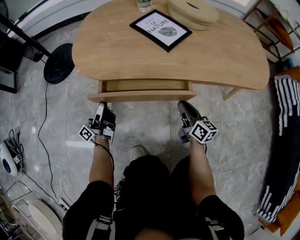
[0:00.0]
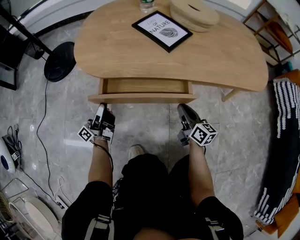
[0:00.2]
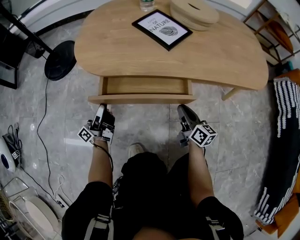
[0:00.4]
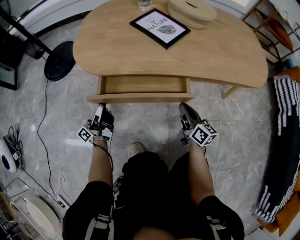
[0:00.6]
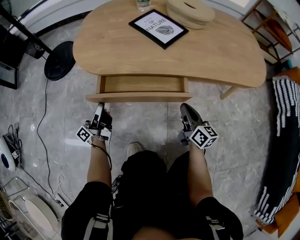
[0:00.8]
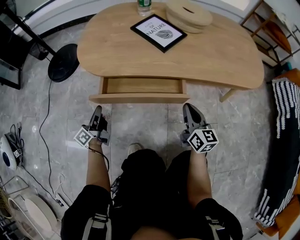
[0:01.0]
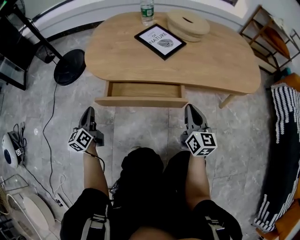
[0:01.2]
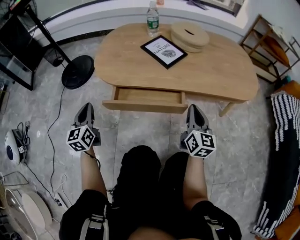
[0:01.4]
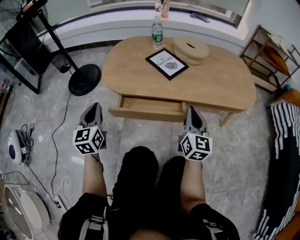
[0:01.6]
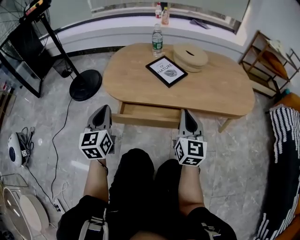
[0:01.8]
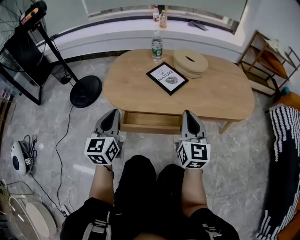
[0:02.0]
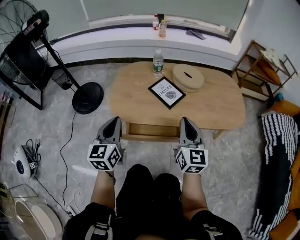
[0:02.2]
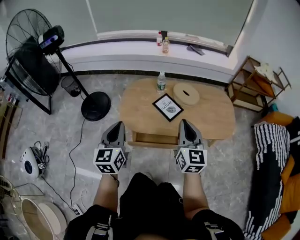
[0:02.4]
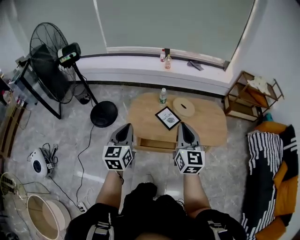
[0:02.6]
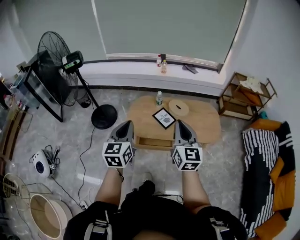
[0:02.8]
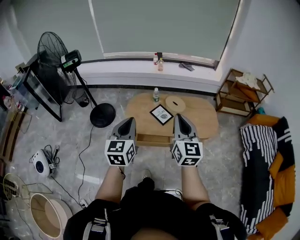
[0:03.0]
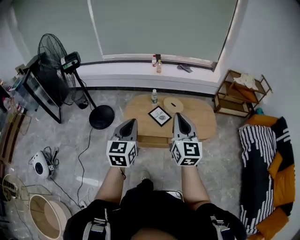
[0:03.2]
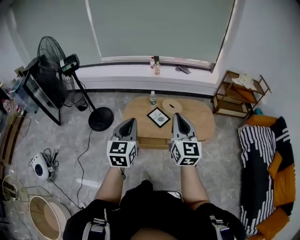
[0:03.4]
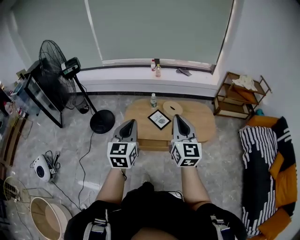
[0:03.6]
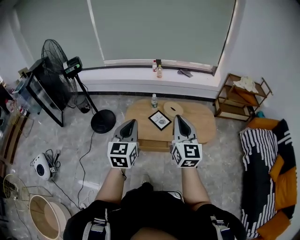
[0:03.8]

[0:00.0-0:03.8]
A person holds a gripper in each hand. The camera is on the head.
0.0 to 1.2 s: The right gripper travels upward by roughly 15 cm, and changes its angle by about 30 degrees. The left gripper heads upward, to the left and backward, covering approximately 10 cm, angles its fingers downward, by some 30 degrees, and closes its fingers.
1.2 to 2.6 s: The grippers both shift upward by approximately 70 cm. The left gripper turns by approximately 20 degrees.
2.6 to 3.8 s: The left gripper shifts approximately 20 cm upward, backward and to the right, while the right gripper travels upward and backward by approximately 20 cm.

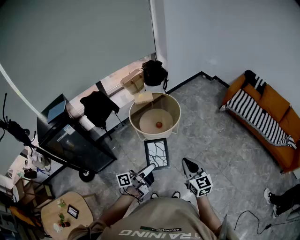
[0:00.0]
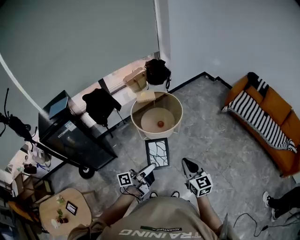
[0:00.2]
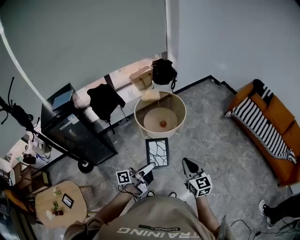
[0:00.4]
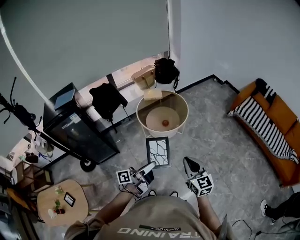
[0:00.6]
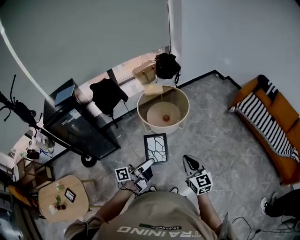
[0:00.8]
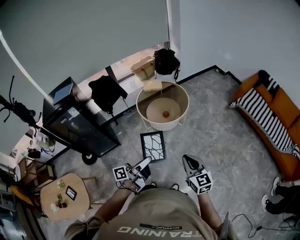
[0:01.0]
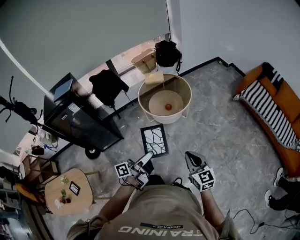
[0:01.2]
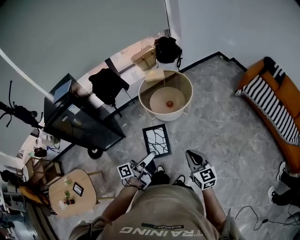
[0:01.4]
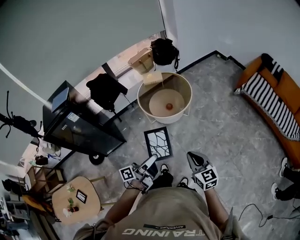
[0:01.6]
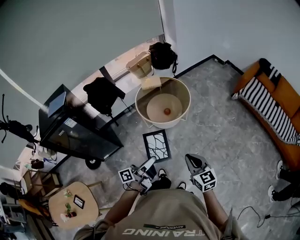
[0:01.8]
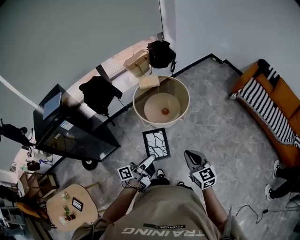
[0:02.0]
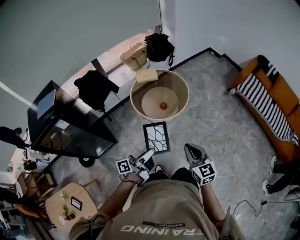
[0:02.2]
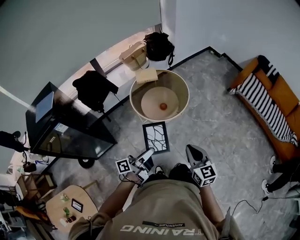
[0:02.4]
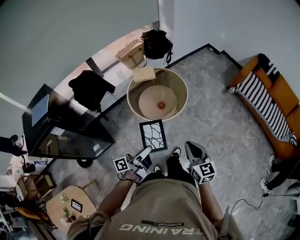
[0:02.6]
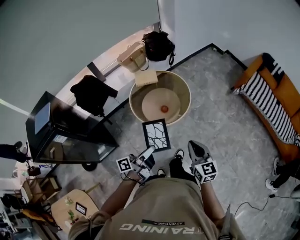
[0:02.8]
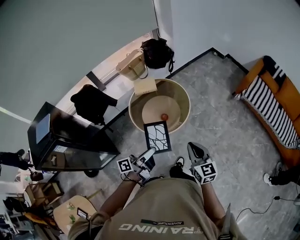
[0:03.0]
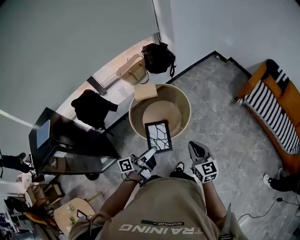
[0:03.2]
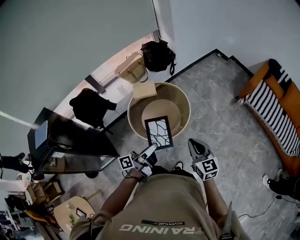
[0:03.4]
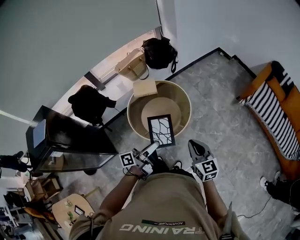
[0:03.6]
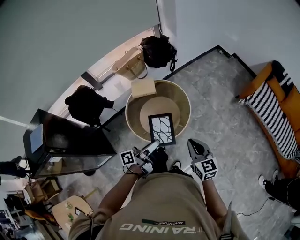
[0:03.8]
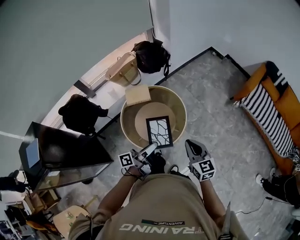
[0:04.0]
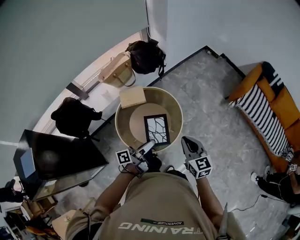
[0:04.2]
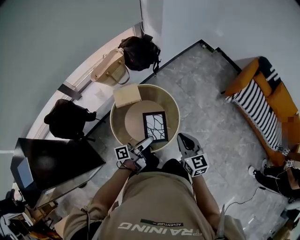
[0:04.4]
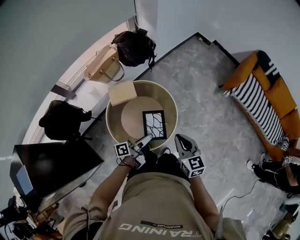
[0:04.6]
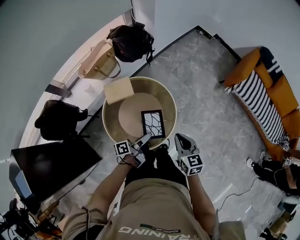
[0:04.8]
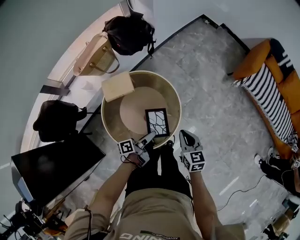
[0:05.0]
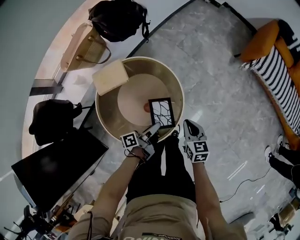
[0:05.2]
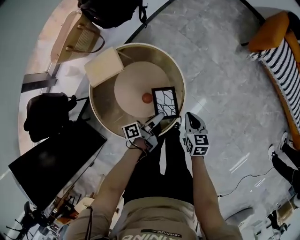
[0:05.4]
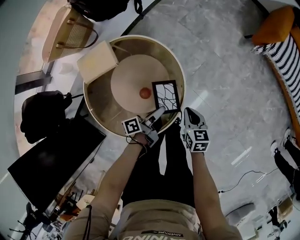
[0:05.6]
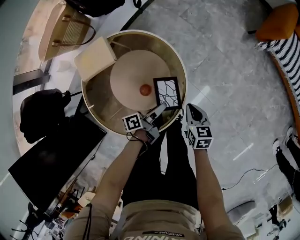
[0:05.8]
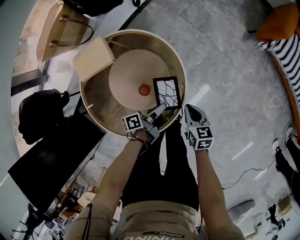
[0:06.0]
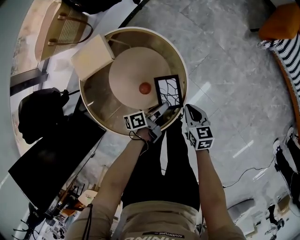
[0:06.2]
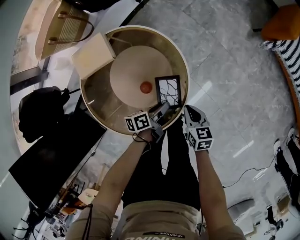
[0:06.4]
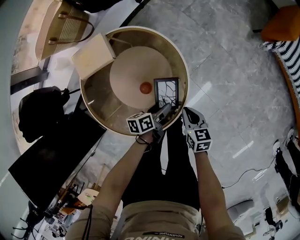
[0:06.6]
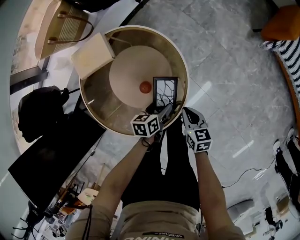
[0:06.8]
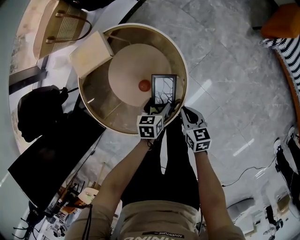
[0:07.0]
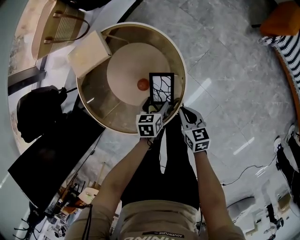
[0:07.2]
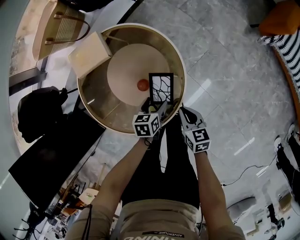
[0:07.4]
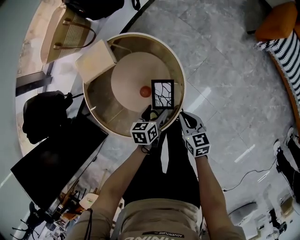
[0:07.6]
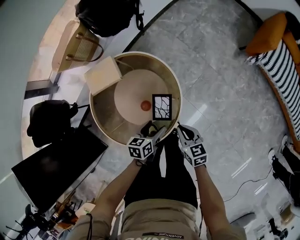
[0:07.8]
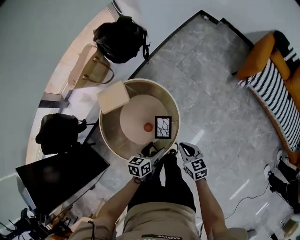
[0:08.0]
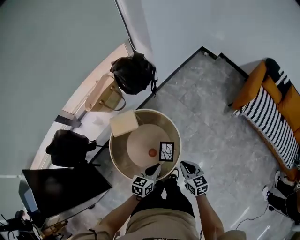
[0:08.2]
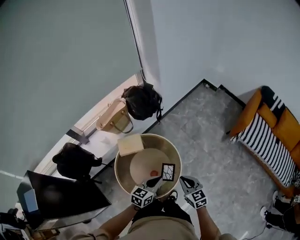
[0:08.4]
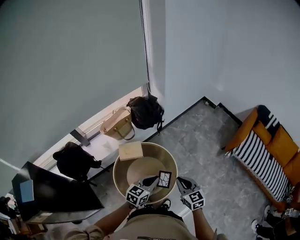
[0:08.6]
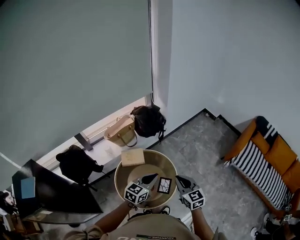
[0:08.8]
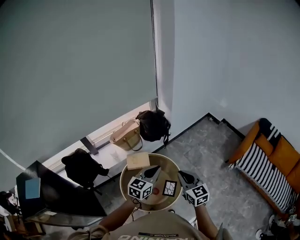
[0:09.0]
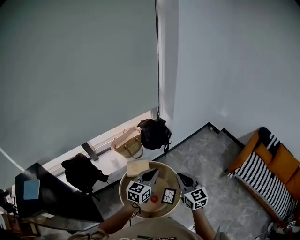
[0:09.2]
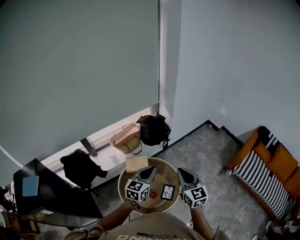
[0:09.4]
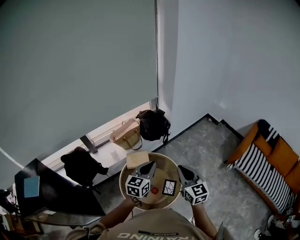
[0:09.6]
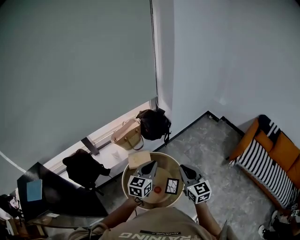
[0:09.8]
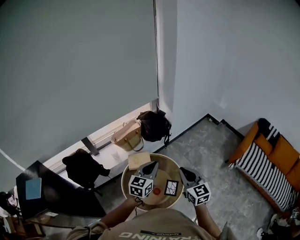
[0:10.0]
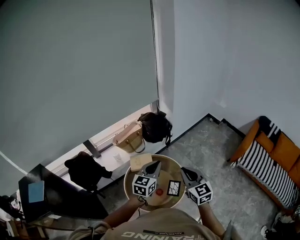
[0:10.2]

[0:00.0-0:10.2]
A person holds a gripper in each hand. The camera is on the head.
0.0 to 1.4 s: The right gripper is displaced downward by some 5 cm.
1.4 to 3.0 s: Both grippers move forward, roughly 25 cm.
3.0 to 4.4 s: Both grippers travel together forward, approximately 25 cm.
4.4 to 5.8 s: The two grippers go roughly 40 cm downward. The left gripper changes its angle by roughly 20 degrees. The right gripper swivels about 30 degrees.
5.8 to 7.2 s: The left gripper shifts about 5 cm downward, angles its fingers downward, by about 40 degrees, and opens its fingers.
7.2 to 8.8 s: The grippers both shift upward by roughly 50 cm. The left gripper tilts its fingers roughly 40 degrees upward, and closes, while the right gripper turns by approximately 40 degrees.
8.8 to 10.2 s: Both grippers travel together upward, approximately 5 cm.

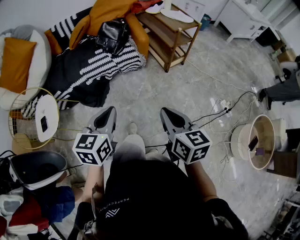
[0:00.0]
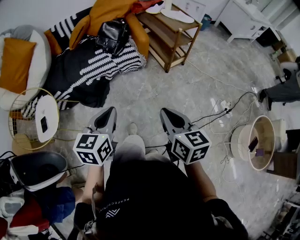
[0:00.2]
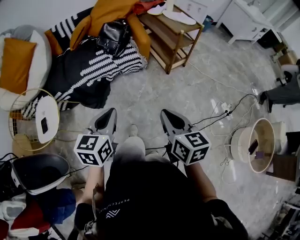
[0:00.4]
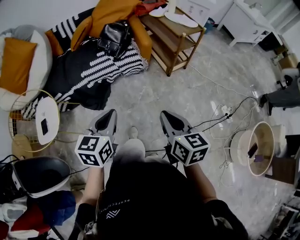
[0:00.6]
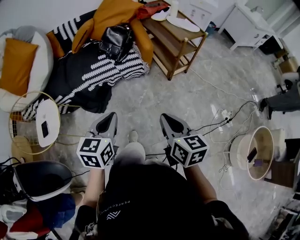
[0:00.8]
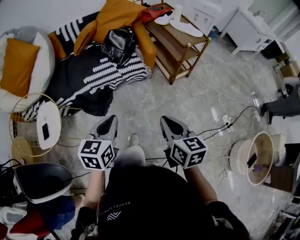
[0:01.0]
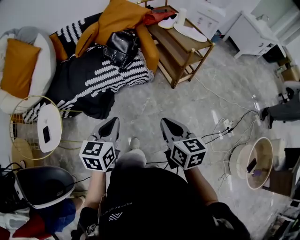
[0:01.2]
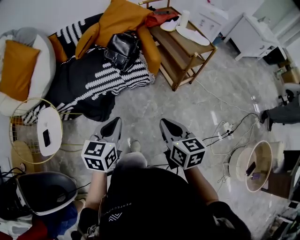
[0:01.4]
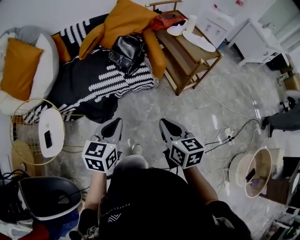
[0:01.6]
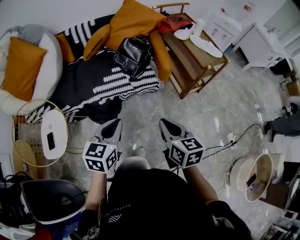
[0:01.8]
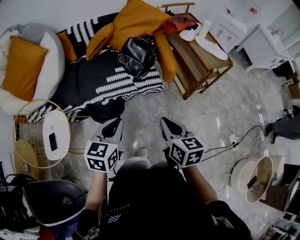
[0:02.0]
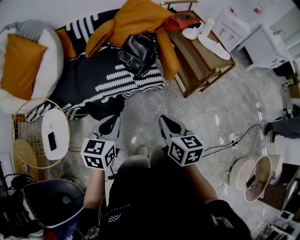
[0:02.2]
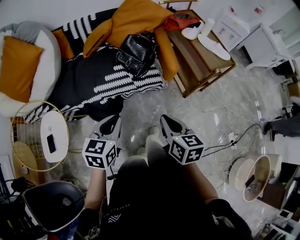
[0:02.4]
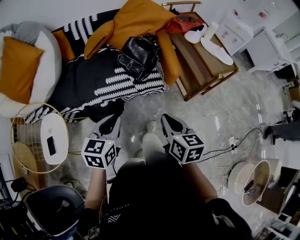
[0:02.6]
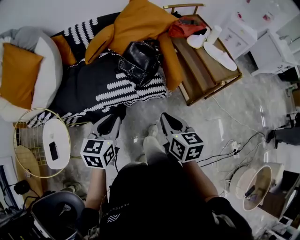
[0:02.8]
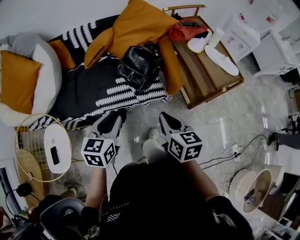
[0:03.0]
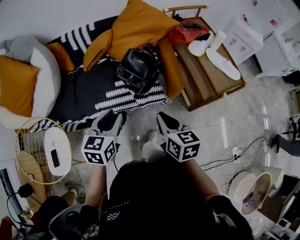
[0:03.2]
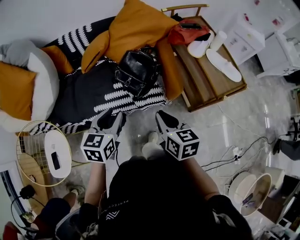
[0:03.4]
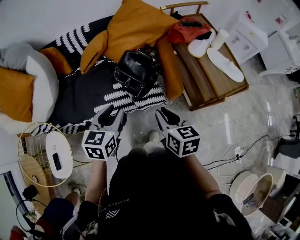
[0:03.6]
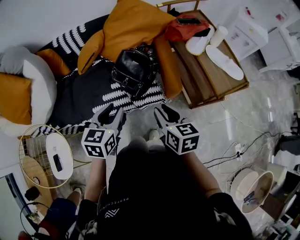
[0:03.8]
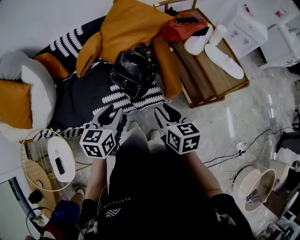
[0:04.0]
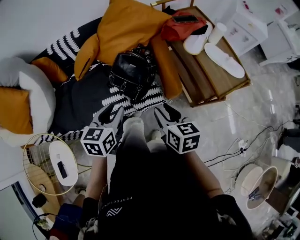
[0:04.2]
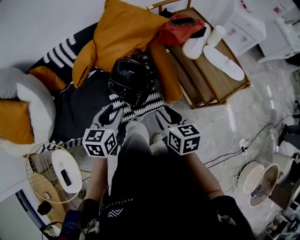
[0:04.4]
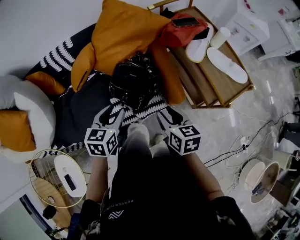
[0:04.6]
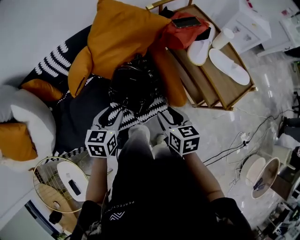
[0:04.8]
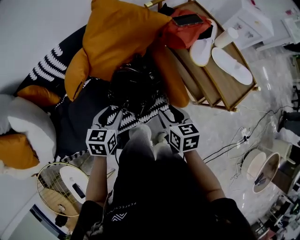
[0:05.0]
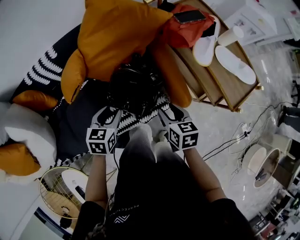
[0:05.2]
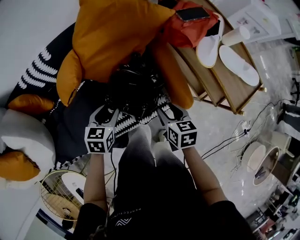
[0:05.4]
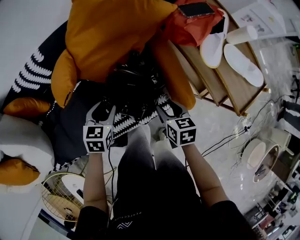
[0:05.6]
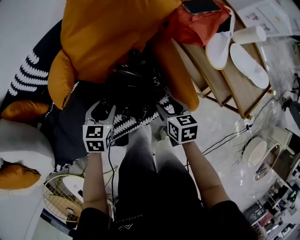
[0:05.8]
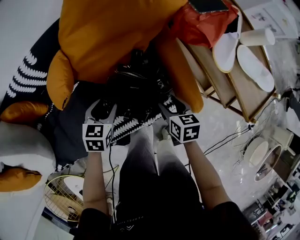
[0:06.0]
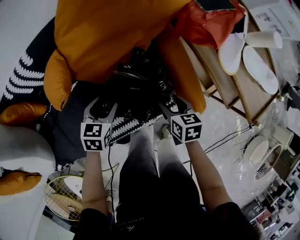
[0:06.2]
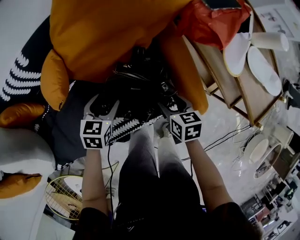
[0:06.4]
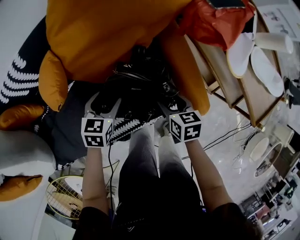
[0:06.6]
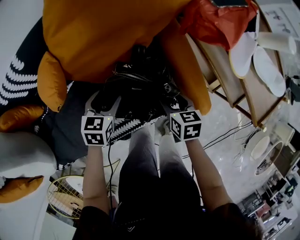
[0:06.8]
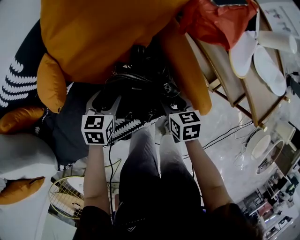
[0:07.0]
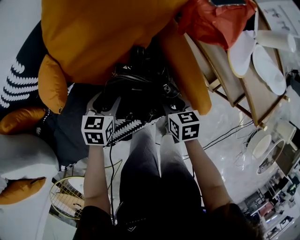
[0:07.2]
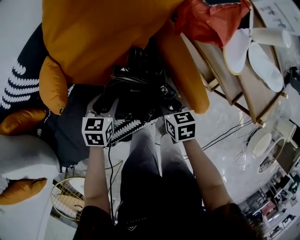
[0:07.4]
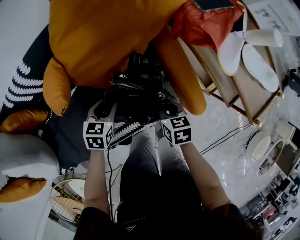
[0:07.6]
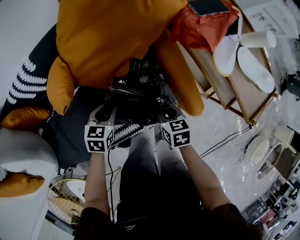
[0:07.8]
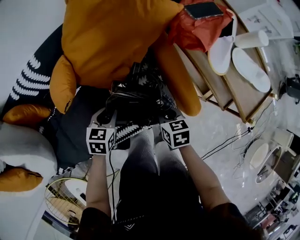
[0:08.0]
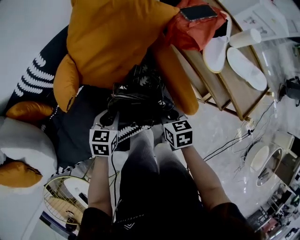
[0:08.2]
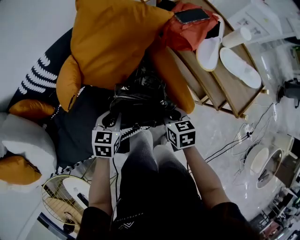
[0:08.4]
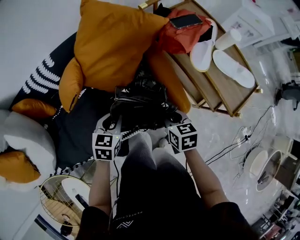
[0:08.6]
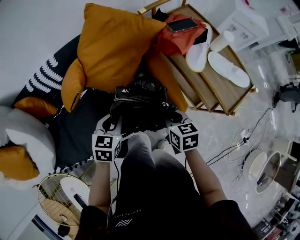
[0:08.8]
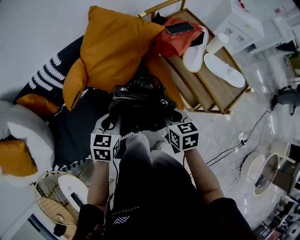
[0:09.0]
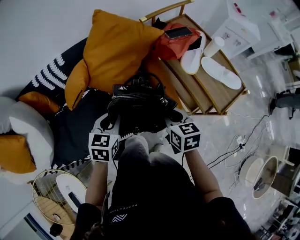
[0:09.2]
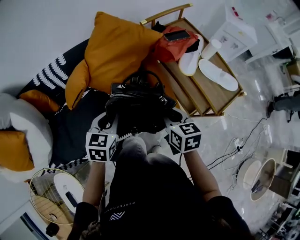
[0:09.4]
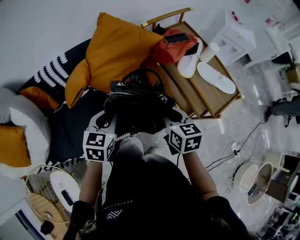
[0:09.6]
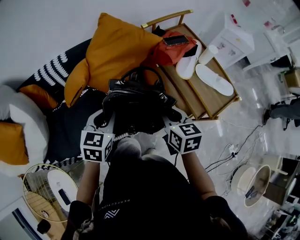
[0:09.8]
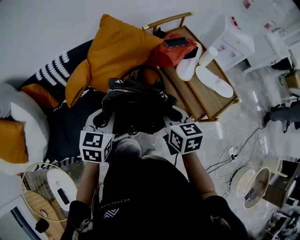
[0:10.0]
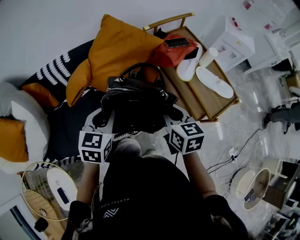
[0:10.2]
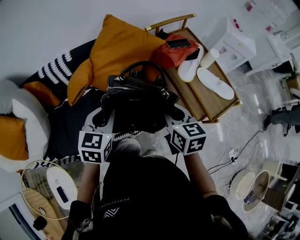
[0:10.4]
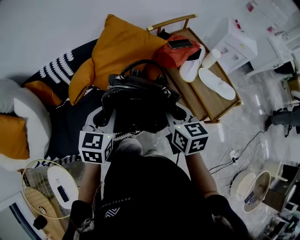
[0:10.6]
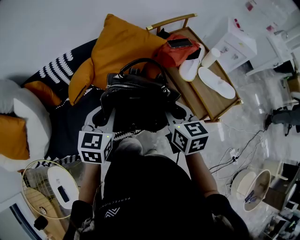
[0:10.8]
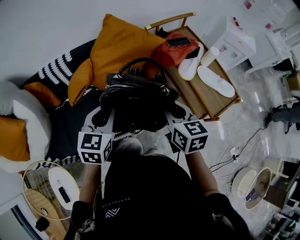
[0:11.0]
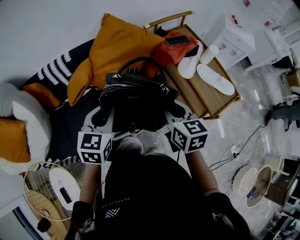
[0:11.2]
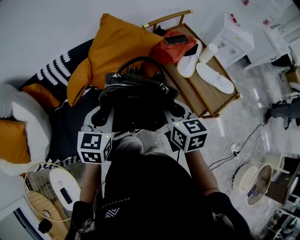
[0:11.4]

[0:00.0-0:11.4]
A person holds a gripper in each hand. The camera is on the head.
0.0 to 1.4 s: Both grippers move forward, about 15 cm.
1.4 to 2.8 s: The right gripper shifts some 20 cm forward, while the left gripper goes about 20 cm forward and to the left.
2.8 to 4.2 s: Both grippers move forward, about 20 cm. The right gripper opens.
4.2 to 5.6 s: The left gripper moves forward and downward, about 30 cm, and swivels roughly 20 degrees; the right gripper heads downward and forward, covering approximately 25 cm, and swivels approximately 20 degrees.
5.6 to 7.2 s: The right gripper shifts roughly 10 cm downward; the left gripper goes about 10 cm downward and forward.
7.2 to 8.6 s: The left gripper shifts some 15 cm upward and backward, and closes its fingers. The right gripper travels upward by about 15 cm, and closes its fingers.
8.6 to 10.0 s: The grippers both shift upward by some 15 cm.
10.0 to 11.4 s: There are only small adjustments of the grippers.
